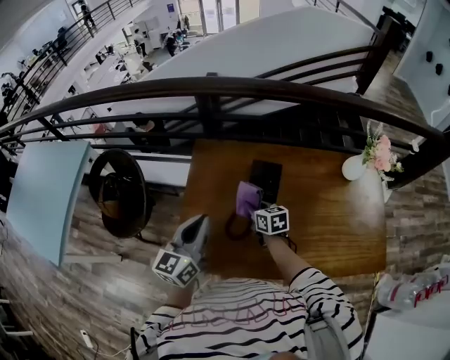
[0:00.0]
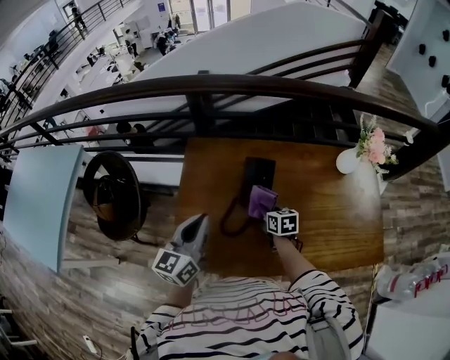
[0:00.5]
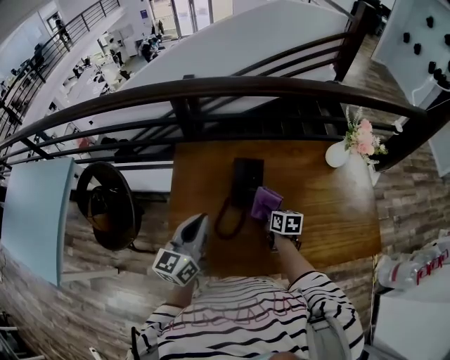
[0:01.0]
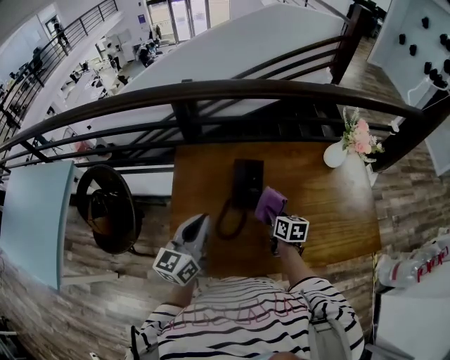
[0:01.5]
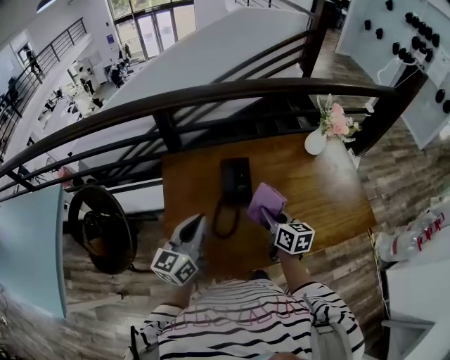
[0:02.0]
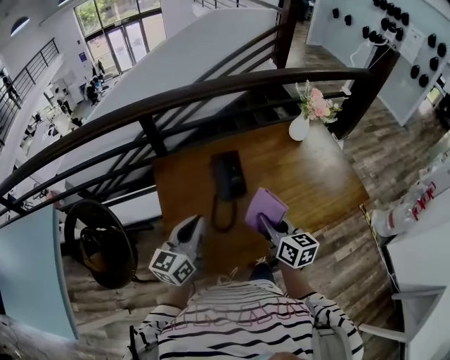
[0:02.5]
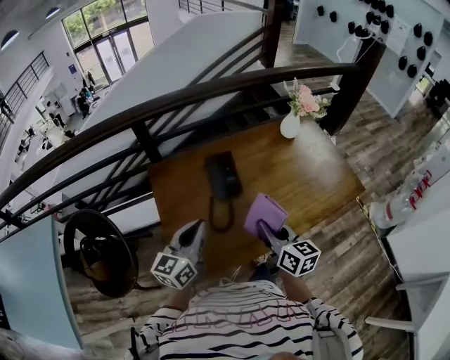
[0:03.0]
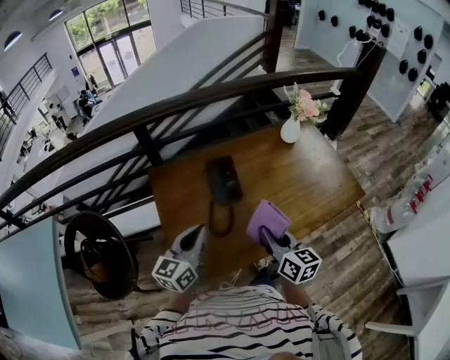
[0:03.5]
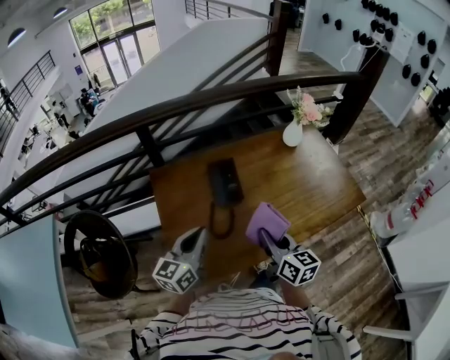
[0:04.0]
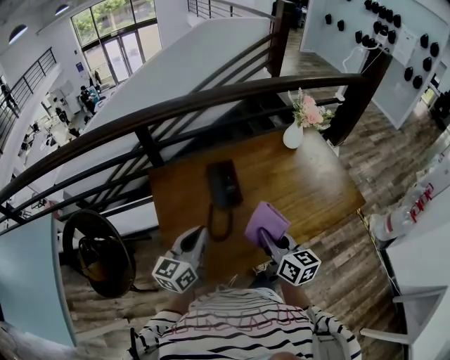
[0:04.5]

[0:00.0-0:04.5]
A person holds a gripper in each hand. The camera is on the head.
0.0 to 2.0 s: The right gripper goes roughly 20 cm to the right, backward and upward, and turns by about 30 degrees.
2.0 to 4.5 s: The right gripper shifts about 15 cm backward and upward.

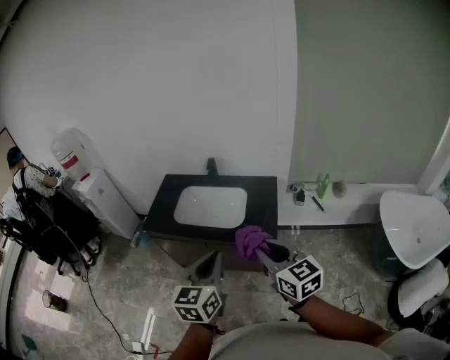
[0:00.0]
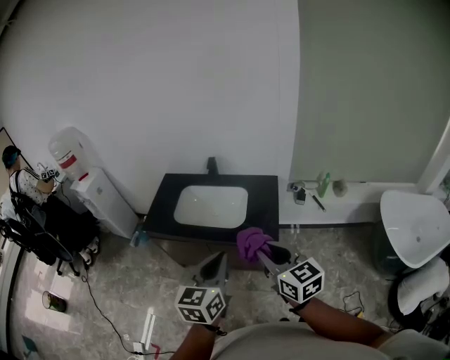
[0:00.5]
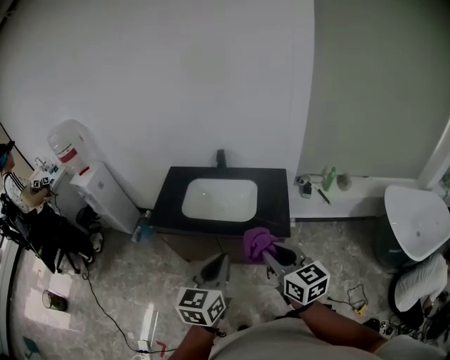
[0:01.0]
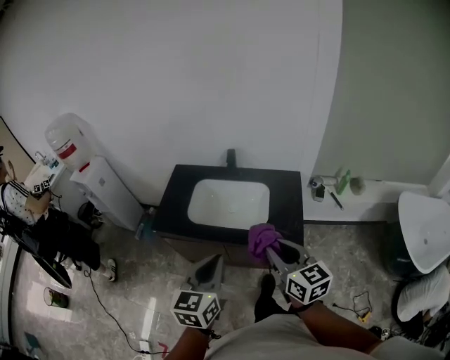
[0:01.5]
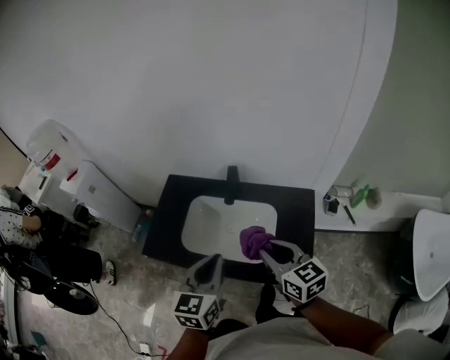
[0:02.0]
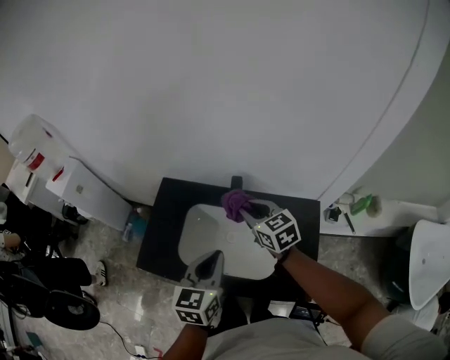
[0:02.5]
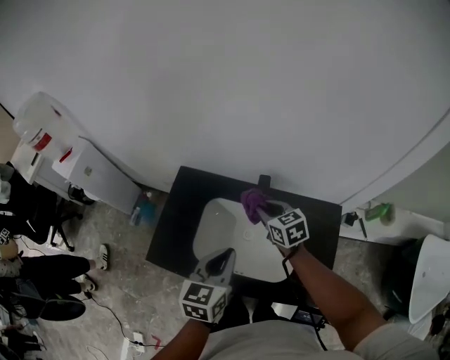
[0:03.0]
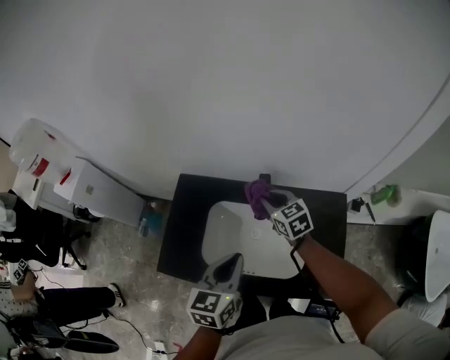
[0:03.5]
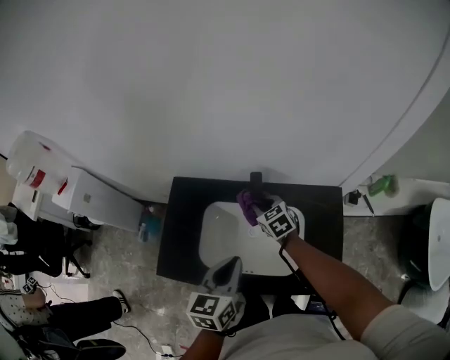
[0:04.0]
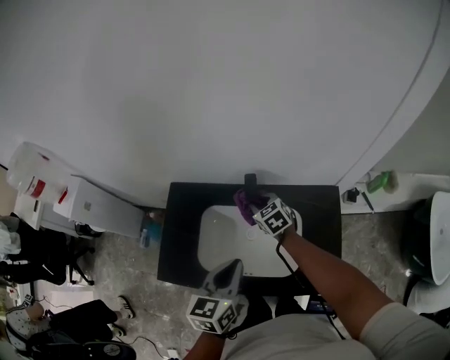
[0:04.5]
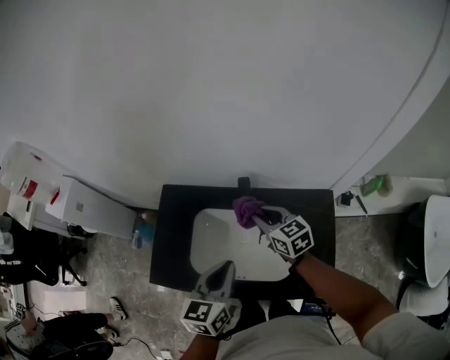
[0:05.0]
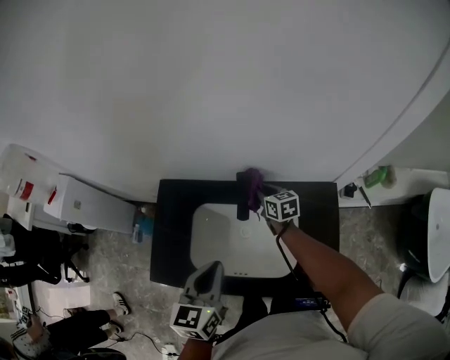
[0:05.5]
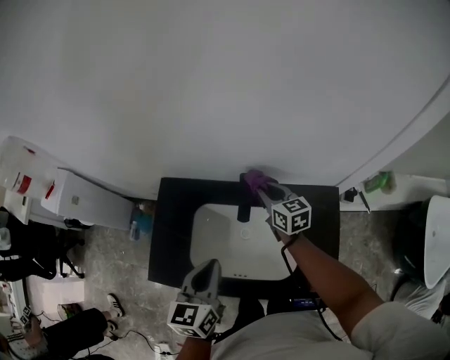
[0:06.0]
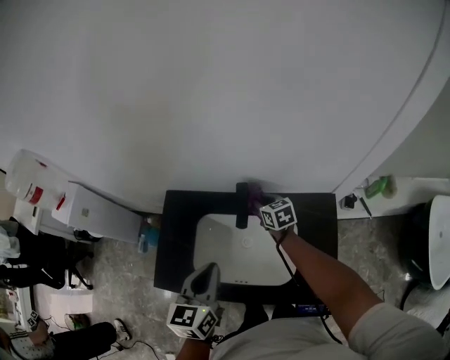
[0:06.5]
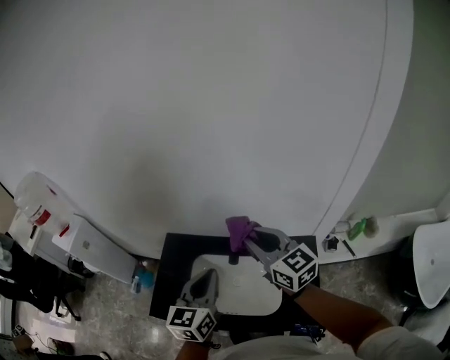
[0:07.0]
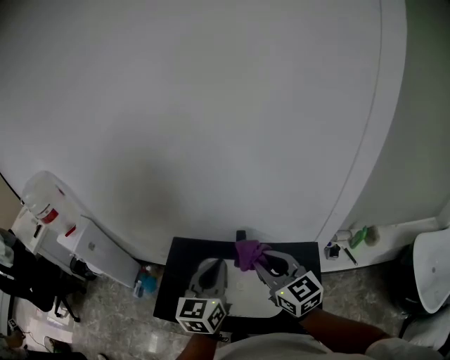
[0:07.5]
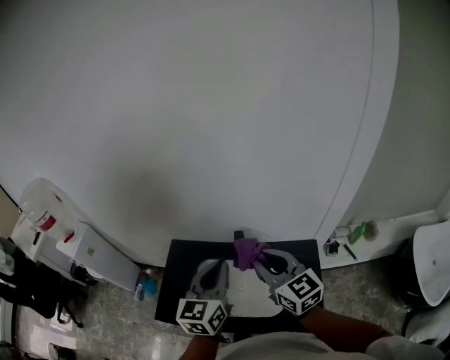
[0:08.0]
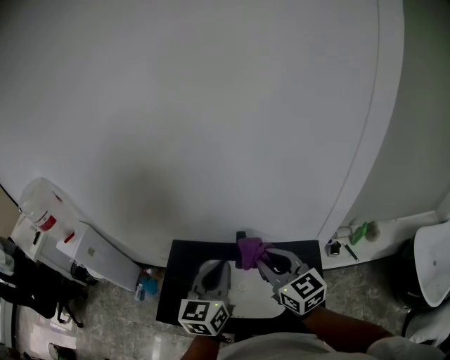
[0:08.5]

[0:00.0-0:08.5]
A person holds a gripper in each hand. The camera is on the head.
0.0 to 2.0 s: Both grippers travel together forward, roughly 35 cm.
2.0 to 4.0 s: The right gripper is displaced forward and downward by roughly 35 cm, and rotates some 30 degrees. Meanwhile the left gripper shifts approximately 15 cm forward and downward.
4.0 to 6.5 s: The right gripper goes up and down, some 10 cm each way, reversing 3 times, and changes its angle by some 20 degrees.
6.5 to 8.5 s: The right gripper heads upward and backward, covering approximately 40 cm, and turns by about 30 degrees. The left gripper shifts about 15 cm upward.

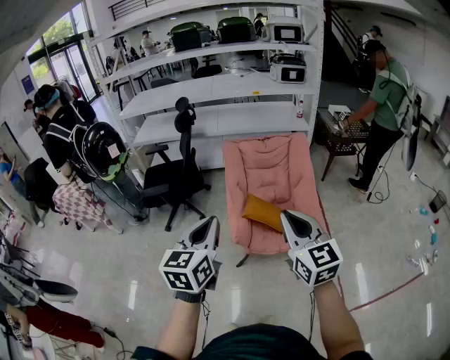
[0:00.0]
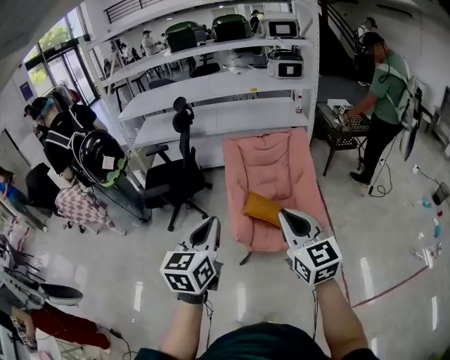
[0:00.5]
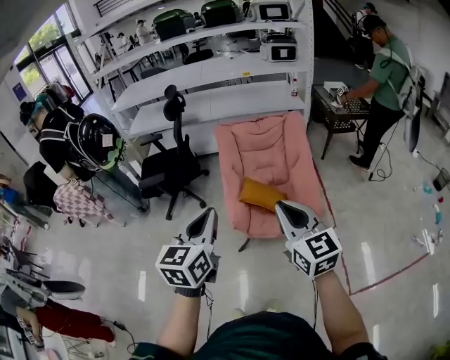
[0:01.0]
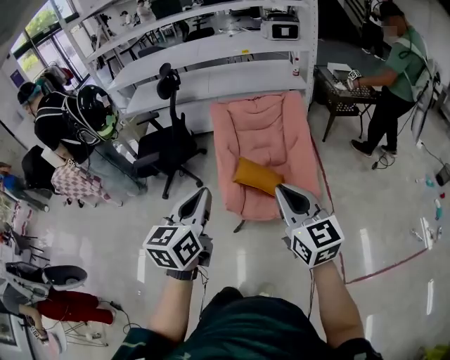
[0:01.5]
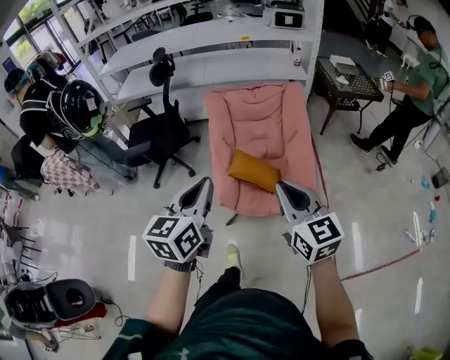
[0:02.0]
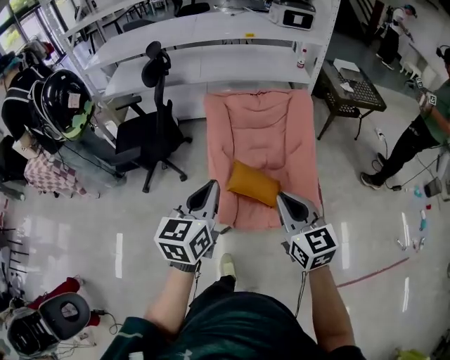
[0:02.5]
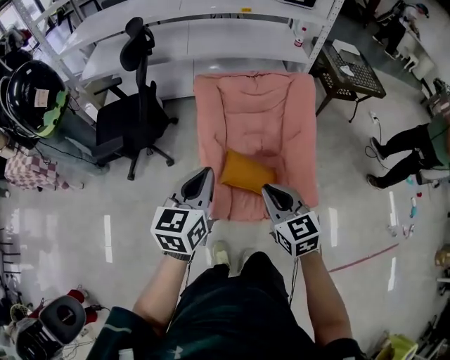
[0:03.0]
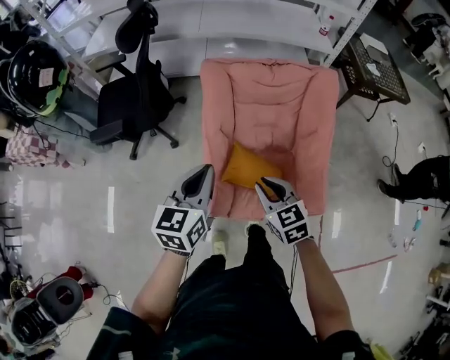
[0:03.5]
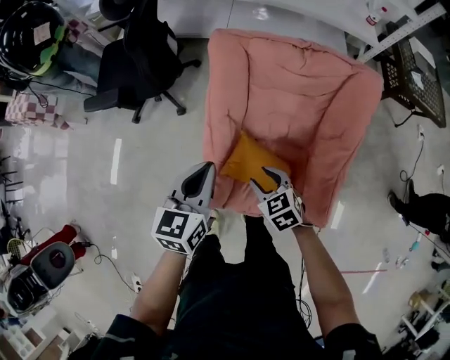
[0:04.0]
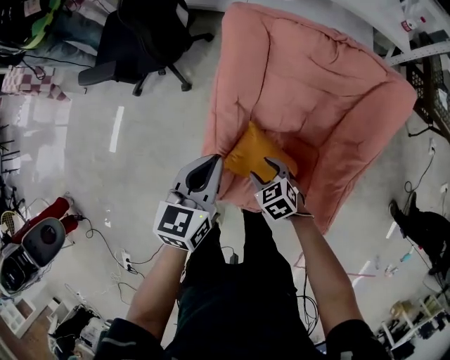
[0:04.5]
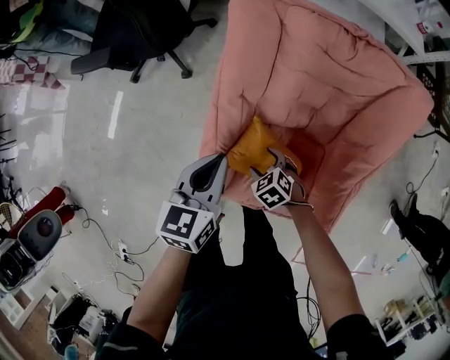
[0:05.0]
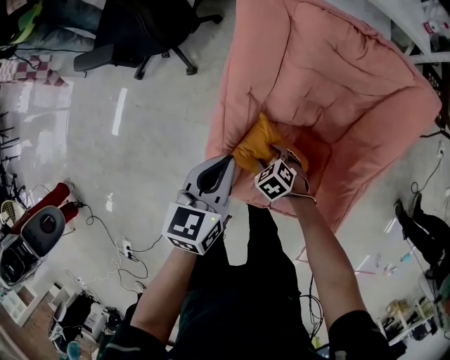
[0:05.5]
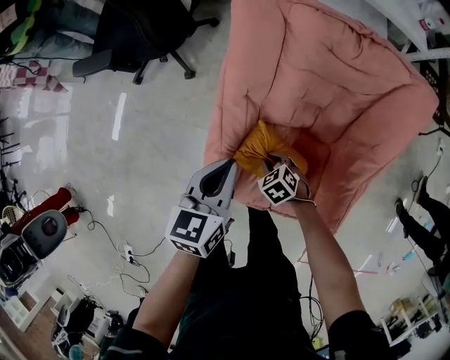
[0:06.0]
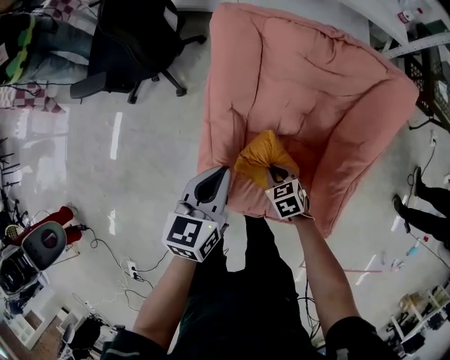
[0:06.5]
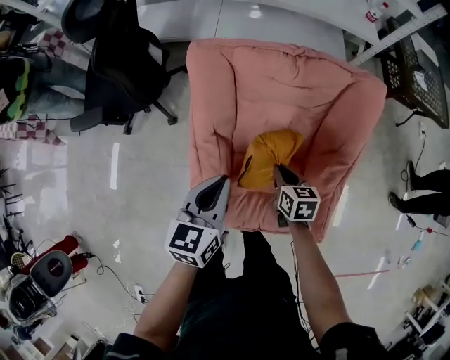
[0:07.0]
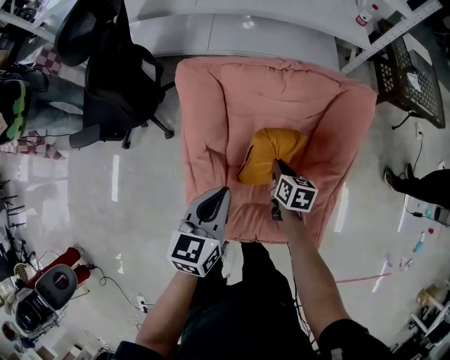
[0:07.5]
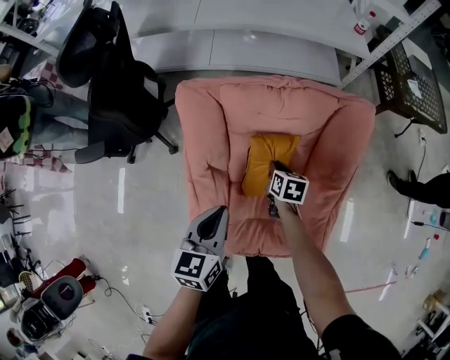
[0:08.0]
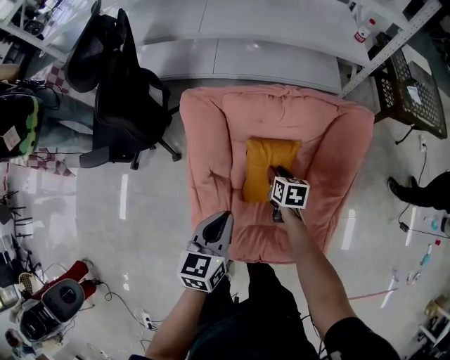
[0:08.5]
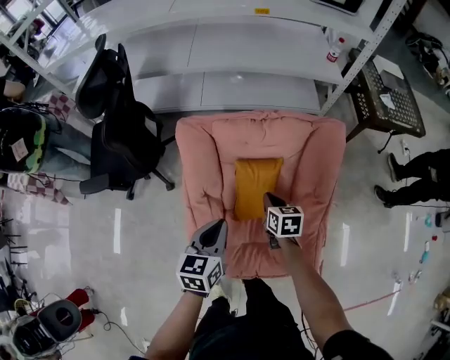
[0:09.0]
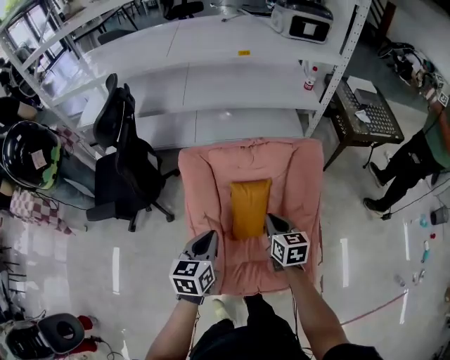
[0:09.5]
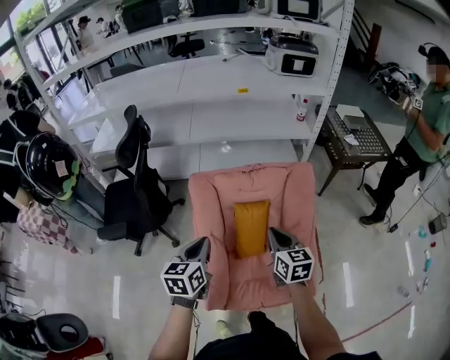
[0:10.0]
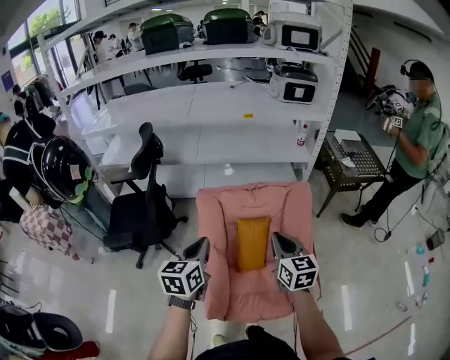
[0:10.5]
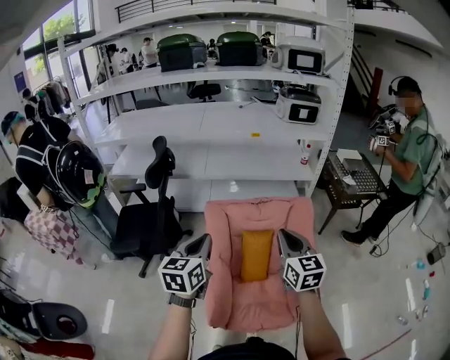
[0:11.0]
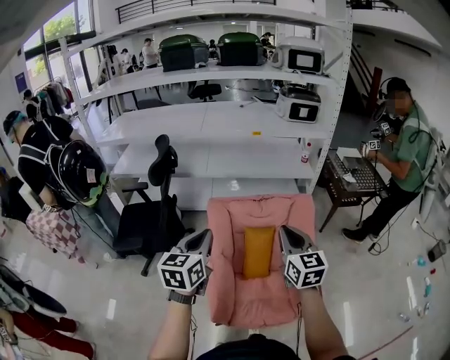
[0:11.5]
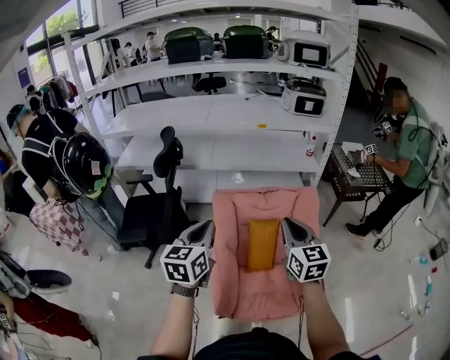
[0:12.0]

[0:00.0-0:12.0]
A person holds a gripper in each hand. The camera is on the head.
0.0 to 2.0 s: The right gripper heads to the right, downward and forward, covering some 10 cm. The left gripper moves to the right, forward and downward, approximately 10 cm.
2.0 to 4.0 s: The left gripper is displaced forward and downward by roughly 50 cm, while the right gripper moves downward and forward, about 60 cm, tilts its fingers some 40 degrees downward, and opens.
4.0 to 6.0 s: The right gripper moves downward, some 20 cm, turns by roughly 20 degrees, and closes up; the left gripper shifts about 10 cm downward.
6.0 to 8.0 s: The left gripper moves about 10 cm, while the right gripper moves roughly 25 cm, and rolls clockwise, seen from behind, by approximately 60 degrees.
8.0 to 10.0 s: The right gripper travels upward and backward by some 35 cm, and rotates approximately 30 degrees. Meanwhile the left gripper is displaced upward and to the left by roughly 15 cm.
10.0 to 12.0 s: The two grippers go approximately 15 cm upward. The right gripper changes its angle by some 20 degrees.

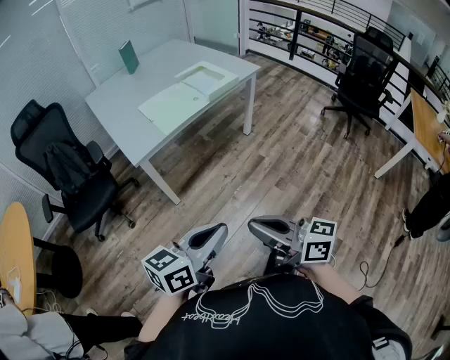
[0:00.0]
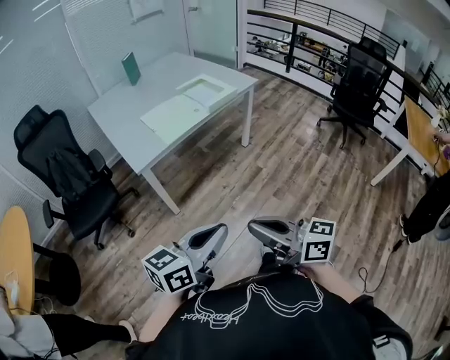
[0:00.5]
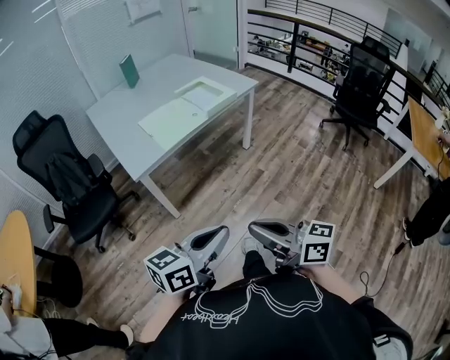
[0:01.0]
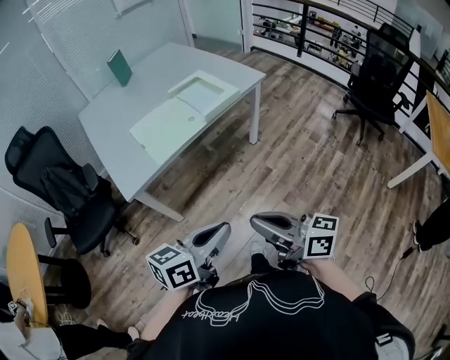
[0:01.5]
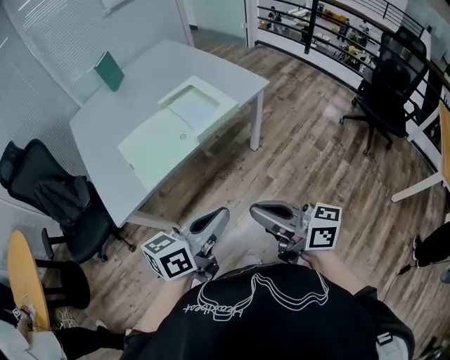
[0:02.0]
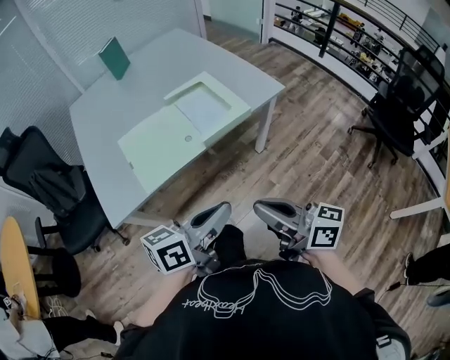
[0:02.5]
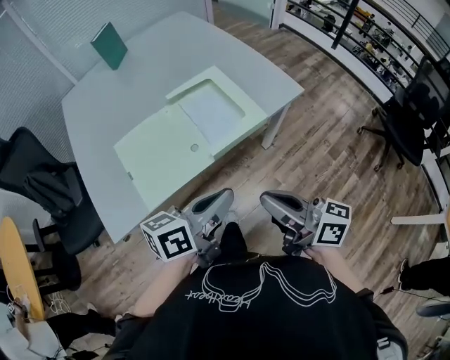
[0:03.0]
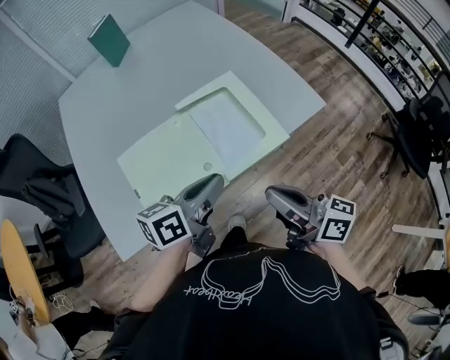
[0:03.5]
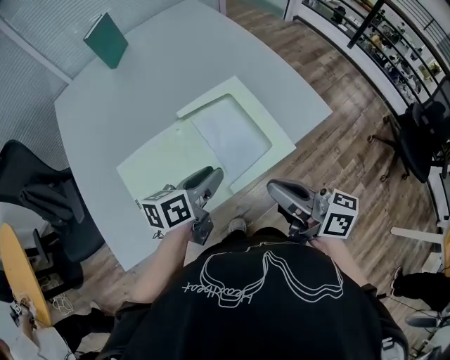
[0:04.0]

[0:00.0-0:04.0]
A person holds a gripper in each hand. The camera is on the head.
0.0 to 2.0 s: The two grippers go about 35 cm forward.
2.0 to 4.0 s: The pair of grippers is taken forward, some 40 cm. The left gripper swivels some 20 degrees, and opens its fingers.
